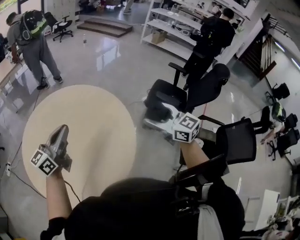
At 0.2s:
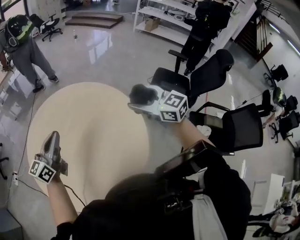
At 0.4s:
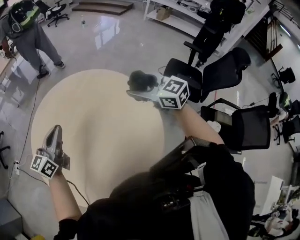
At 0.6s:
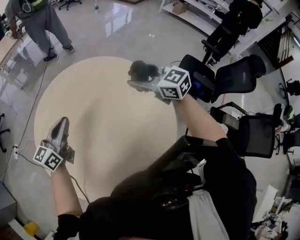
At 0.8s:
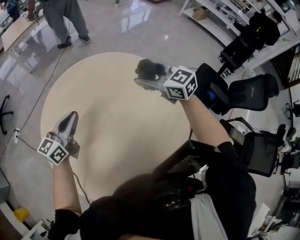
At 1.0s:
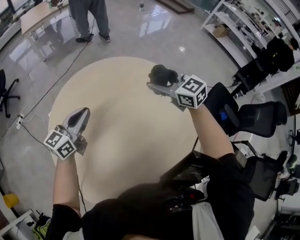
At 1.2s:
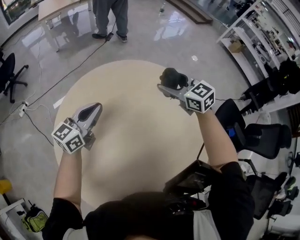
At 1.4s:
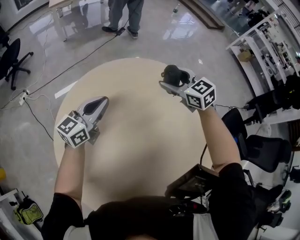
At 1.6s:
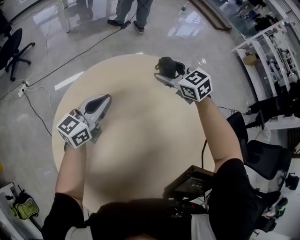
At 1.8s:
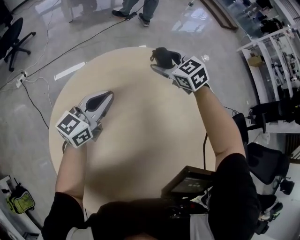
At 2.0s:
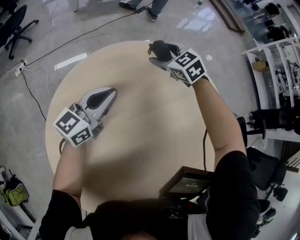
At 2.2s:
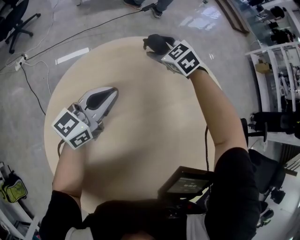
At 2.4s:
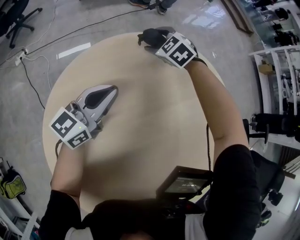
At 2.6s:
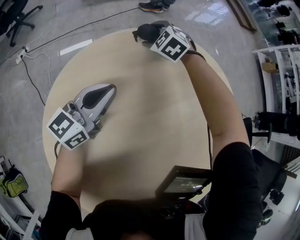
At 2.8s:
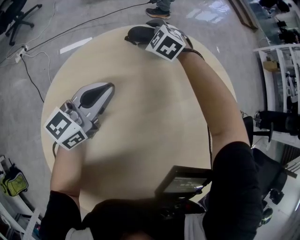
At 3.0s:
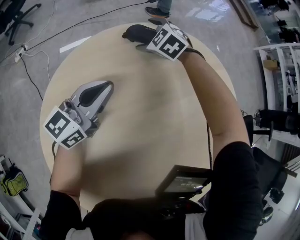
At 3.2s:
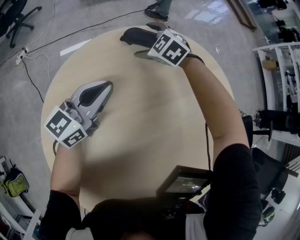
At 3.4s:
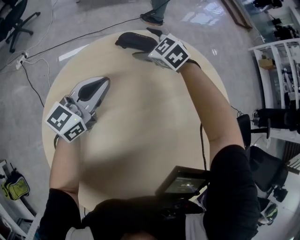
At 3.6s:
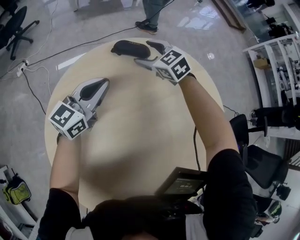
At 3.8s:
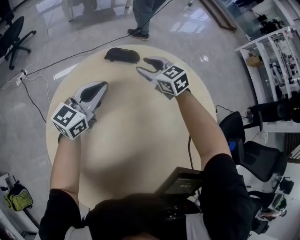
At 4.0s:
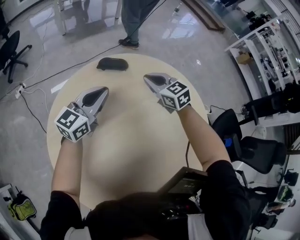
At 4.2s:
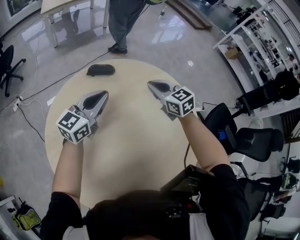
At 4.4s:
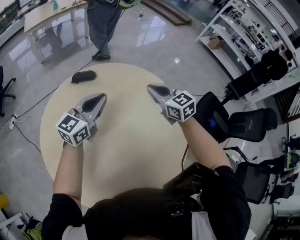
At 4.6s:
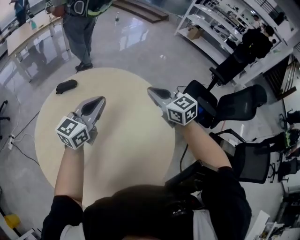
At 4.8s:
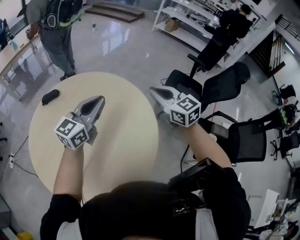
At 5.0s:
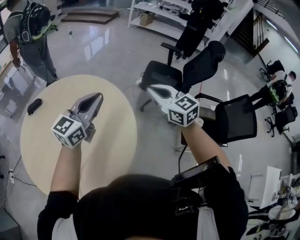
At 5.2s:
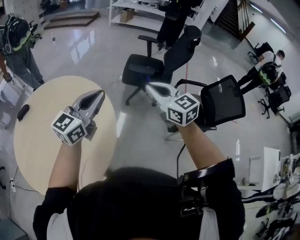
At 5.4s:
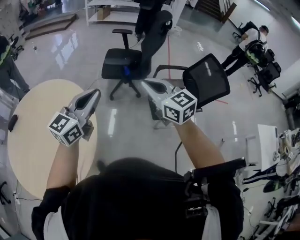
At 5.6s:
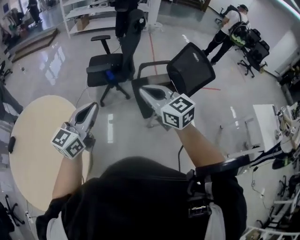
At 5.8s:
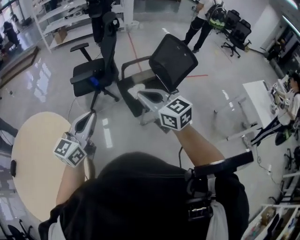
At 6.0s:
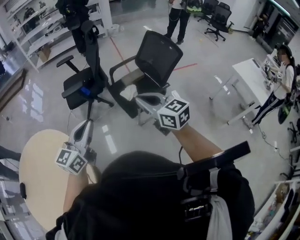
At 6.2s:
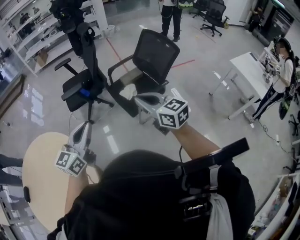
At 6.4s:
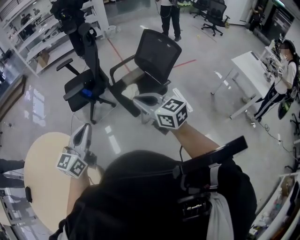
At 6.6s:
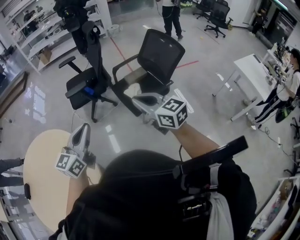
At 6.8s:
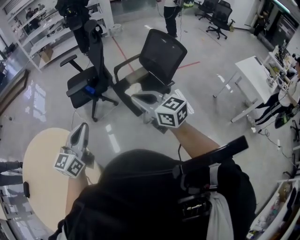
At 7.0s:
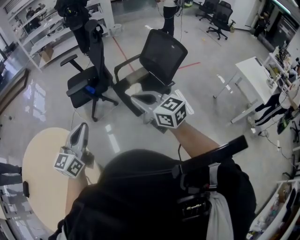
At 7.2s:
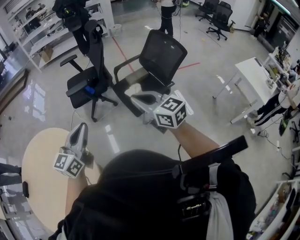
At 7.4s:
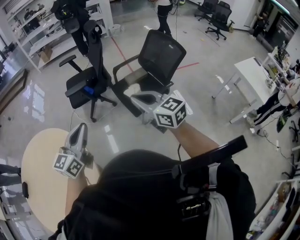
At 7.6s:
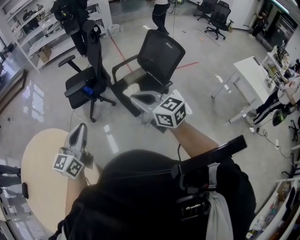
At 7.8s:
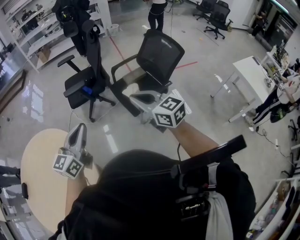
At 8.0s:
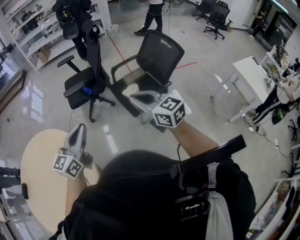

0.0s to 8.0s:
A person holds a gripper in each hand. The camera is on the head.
0.0s to 1.6s: The two grippers travel together, forward and to the left, some 60 cm. The grippers both shift downward by some 25 cm. The right gripper swivels approximately 40 degrees; the left gripper turns by approximately 20 degrees.
1.6s to 3.2s: The right gripper is displaced downward, to the left and forward by some 25 cm, and rotates approximately 30 degrees, while the left gripper goes some 10 cm downward and to the left.
3.2s to 4.8s: The two grippers travel together, roughly 60 cm. The right gripper tilts its fingers about 30 degrees upward, and closes up. Meanwhile the left gripper swivels about 30 degrees.
4.8s to 6.4s: The pair of grippers is taken approximately 70 cm. The right gripper turns by about 50 degrees. Meanwhile the left gripper swivels some 40 degrees.
6.4s to 8.0s: The grippers stay close to where they were, moving slightly.

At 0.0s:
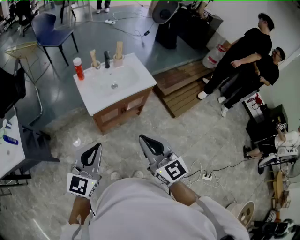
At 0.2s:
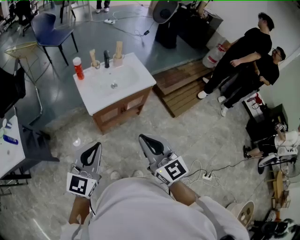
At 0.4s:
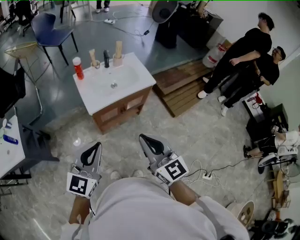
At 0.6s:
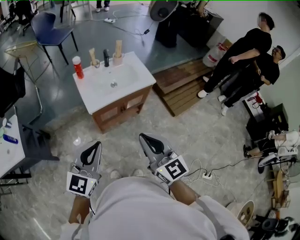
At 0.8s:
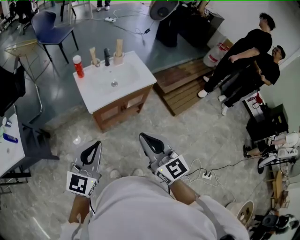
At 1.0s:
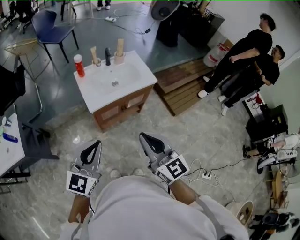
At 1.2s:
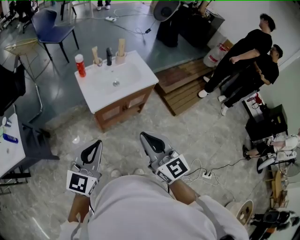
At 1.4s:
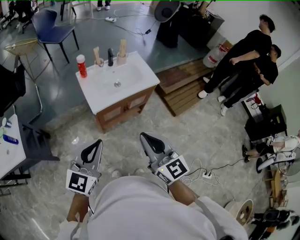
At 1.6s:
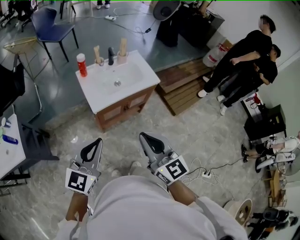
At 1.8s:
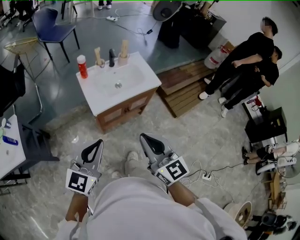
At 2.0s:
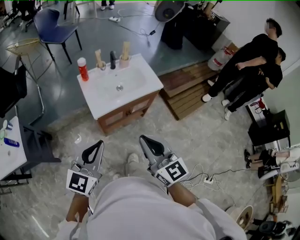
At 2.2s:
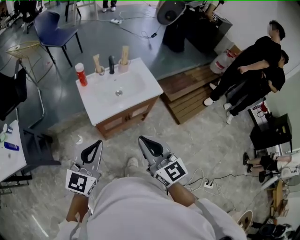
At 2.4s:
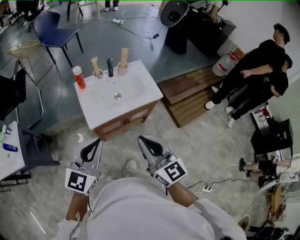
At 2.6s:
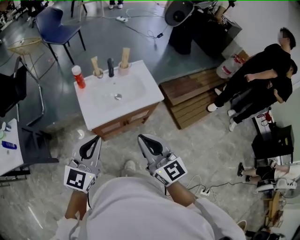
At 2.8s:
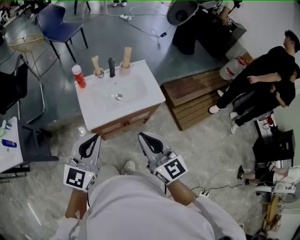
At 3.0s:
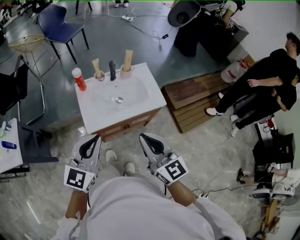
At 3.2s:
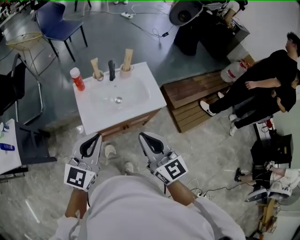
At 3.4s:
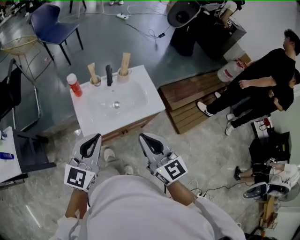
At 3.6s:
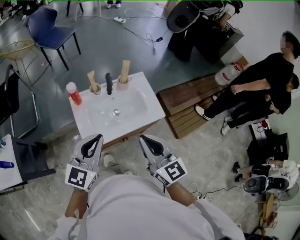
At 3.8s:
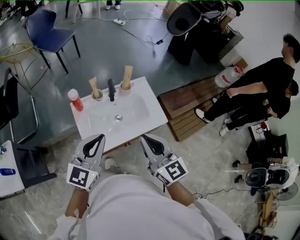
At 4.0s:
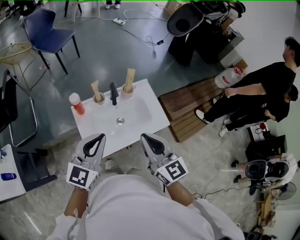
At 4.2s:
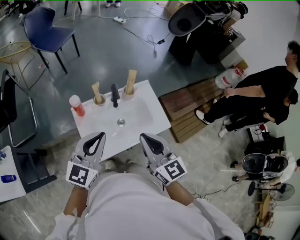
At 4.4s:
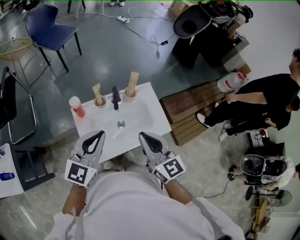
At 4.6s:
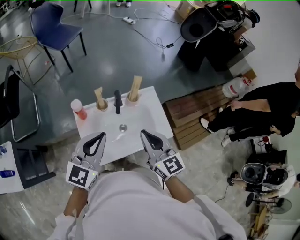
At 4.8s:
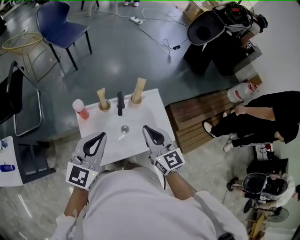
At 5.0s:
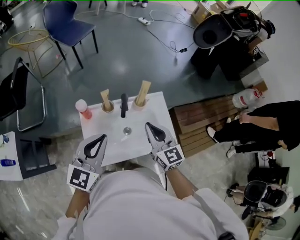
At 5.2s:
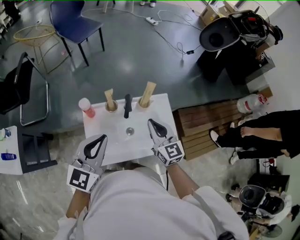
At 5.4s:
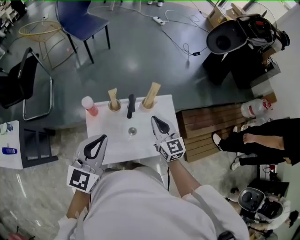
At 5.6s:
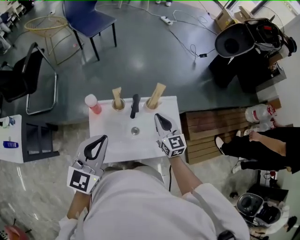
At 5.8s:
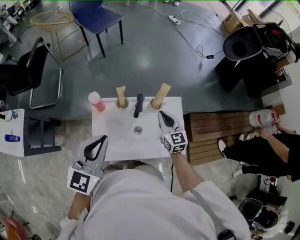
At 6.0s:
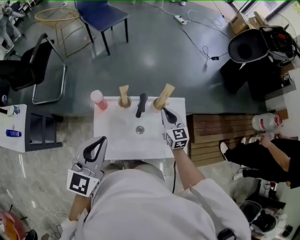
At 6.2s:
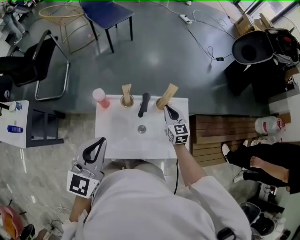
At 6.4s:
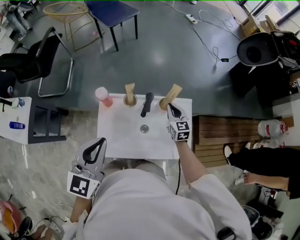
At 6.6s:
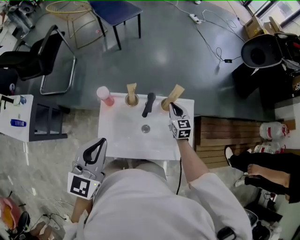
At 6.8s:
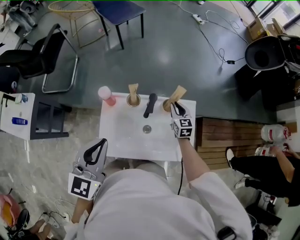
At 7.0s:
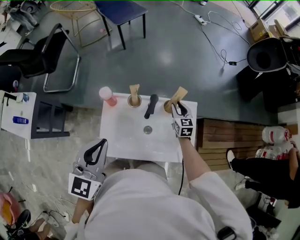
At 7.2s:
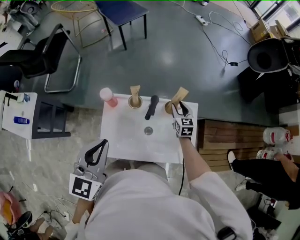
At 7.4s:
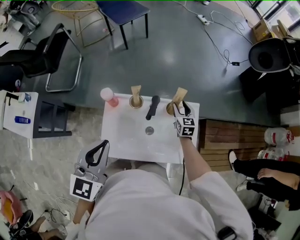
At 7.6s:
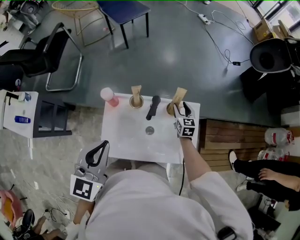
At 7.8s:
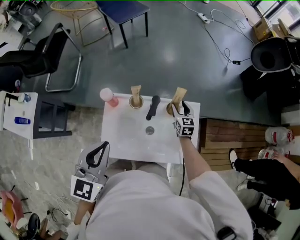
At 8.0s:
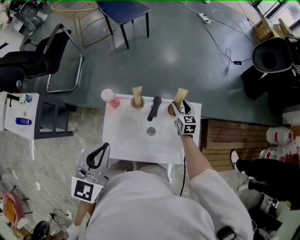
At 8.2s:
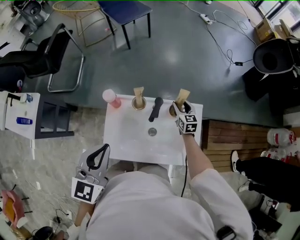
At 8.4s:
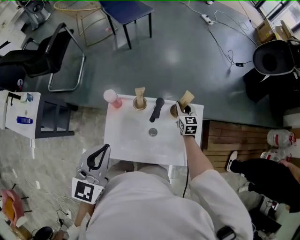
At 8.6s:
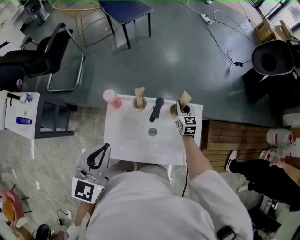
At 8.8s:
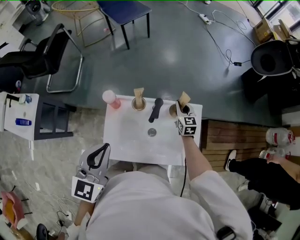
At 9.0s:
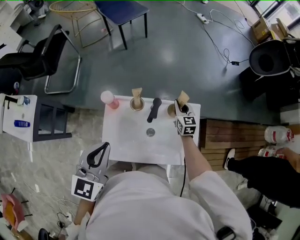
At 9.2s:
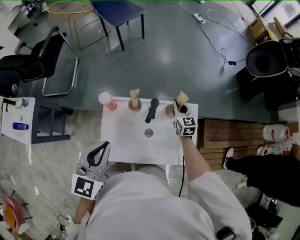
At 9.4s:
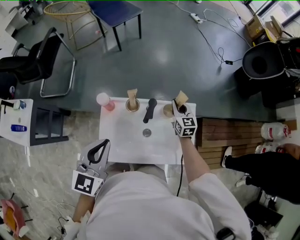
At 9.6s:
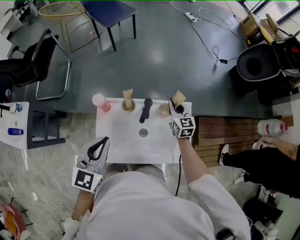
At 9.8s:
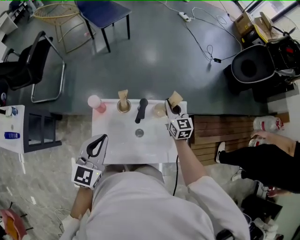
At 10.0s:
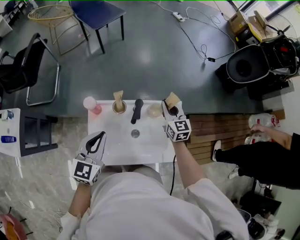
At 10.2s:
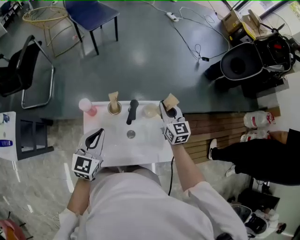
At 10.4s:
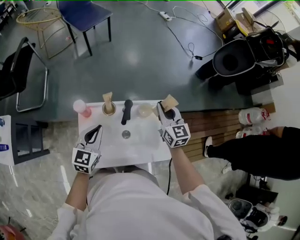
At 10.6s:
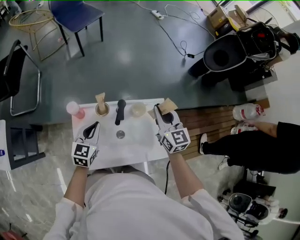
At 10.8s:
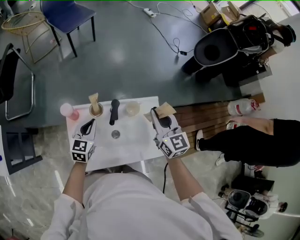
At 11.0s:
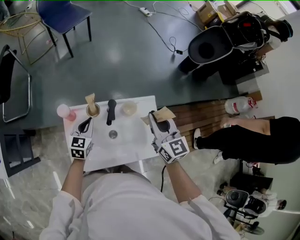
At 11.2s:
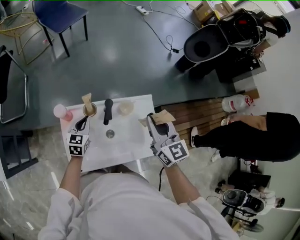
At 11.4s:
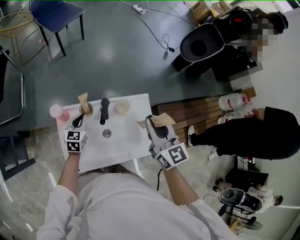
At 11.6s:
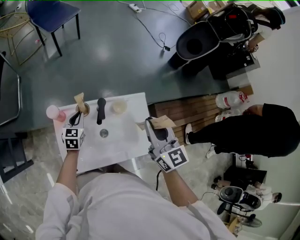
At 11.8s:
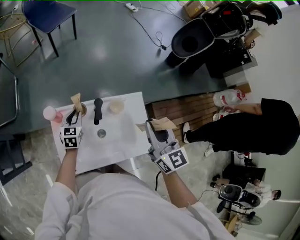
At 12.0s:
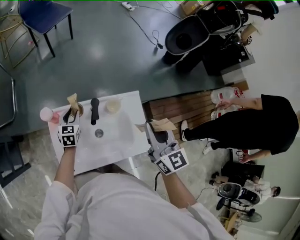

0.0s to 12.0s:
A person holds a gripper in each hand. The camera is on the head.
0.0s to 1.6s: The grippers move only a little.
1.6s to 3.0s: The two grippers go some 20 cm forward and to the right.
3.0s to 4.4s: Both grippers travel together forward, roughly 25 cm.
4.4s to 6.0s: The right gripper heads forward and downward, covering about 30 cm. The left gripper swivels roughly 20 degrees.
6.0s to 7.6s: The right gripper travels downward and forward by about 15 cm, and opens up.
7.6s to 9.0s: The right gripper closes up.
9.0s to 10.4s: The right gripper heads upward, covering about 15 cm, while the left gripper heads downward and forward, covering approximately 15 cm.
10.4s to 12.0s: The left gripper heads downward and forward, covering approximately 20 cm, and opens up; the right gripper moves backward and upward, some 15 cm.

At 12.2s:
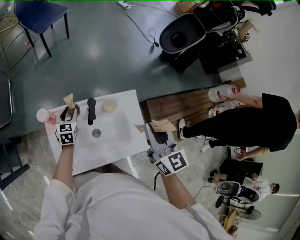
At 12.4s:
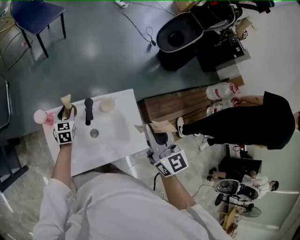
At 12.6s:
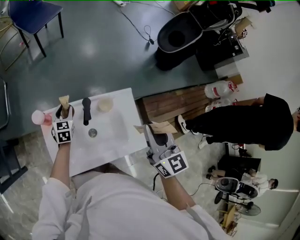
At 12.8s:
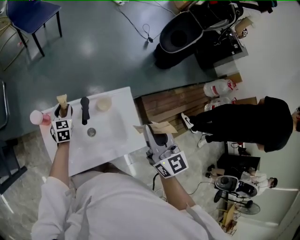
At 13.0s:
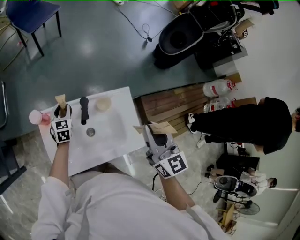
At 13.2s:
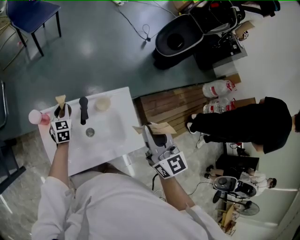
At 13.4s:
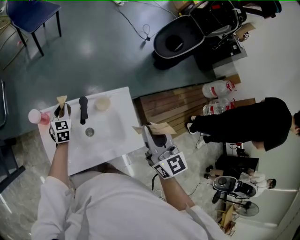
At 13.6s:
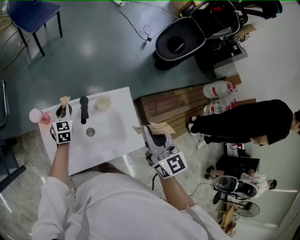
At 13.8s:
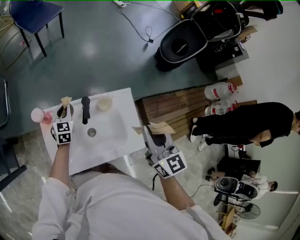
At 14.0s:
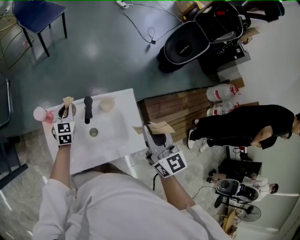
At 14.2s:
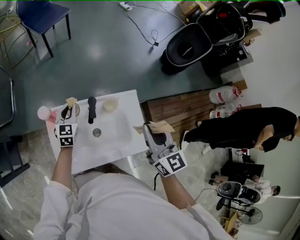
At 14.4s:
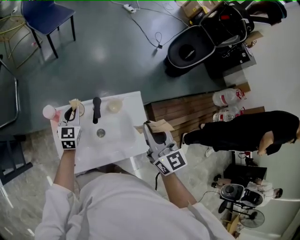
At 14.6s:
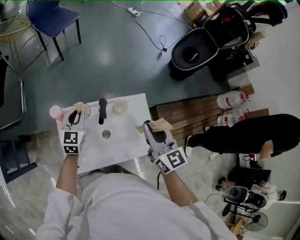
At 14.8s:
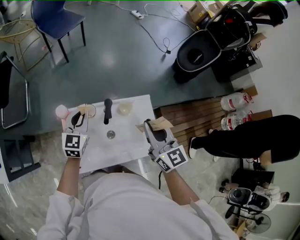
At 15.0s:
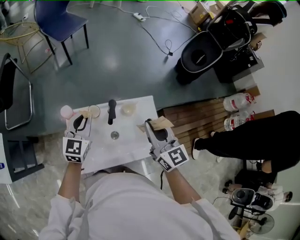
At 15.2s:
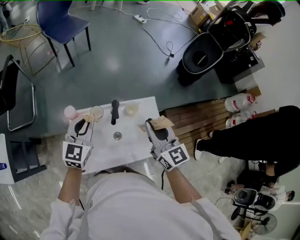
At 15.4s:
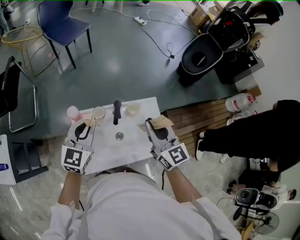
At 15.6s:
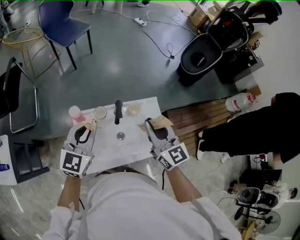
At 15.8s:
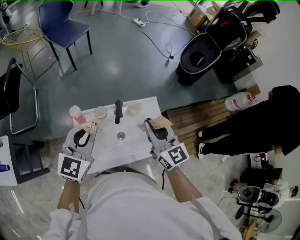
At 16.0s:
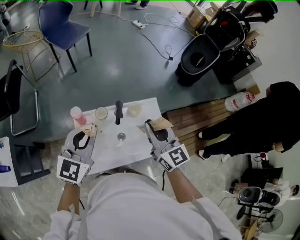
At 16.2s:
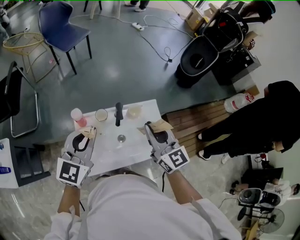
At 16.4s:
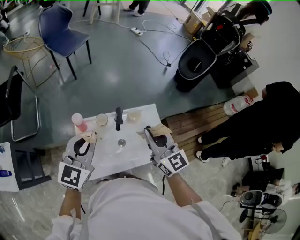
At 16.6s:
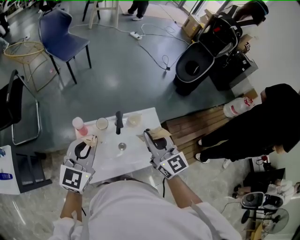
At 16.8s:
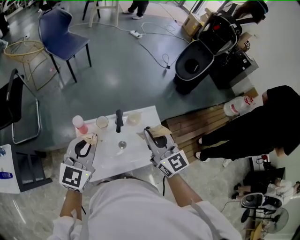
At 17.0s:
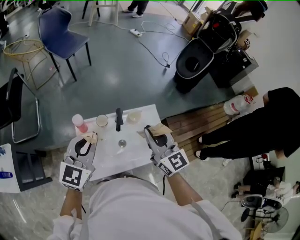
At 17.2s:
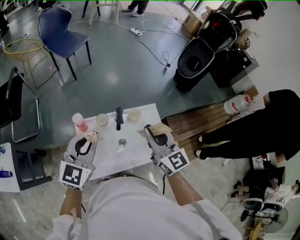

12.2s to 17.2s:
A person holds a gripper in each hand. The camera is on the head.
12.2s to 13.8s: The left gripper closes its fingers.
13.8s to 15.6s: The left gripper shifts roughly 30 cm upward and backward, and changes its angle by roughly 30 degrees, while the right gripper shifts roughly 10 cm to the left.
15.6s to 17.2s: The left gripper is displaced upward by roughly 5 cm.
